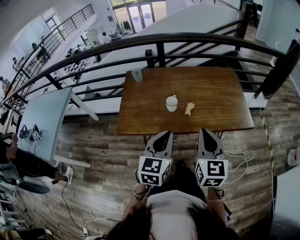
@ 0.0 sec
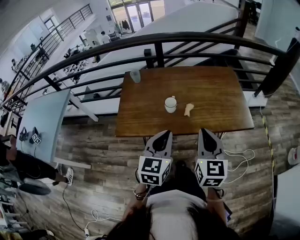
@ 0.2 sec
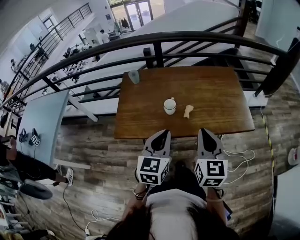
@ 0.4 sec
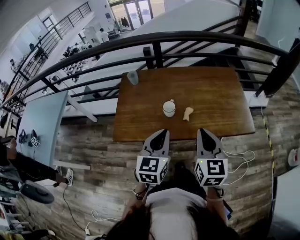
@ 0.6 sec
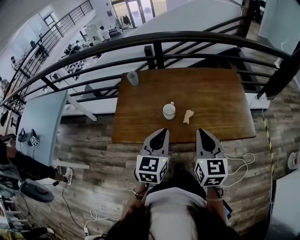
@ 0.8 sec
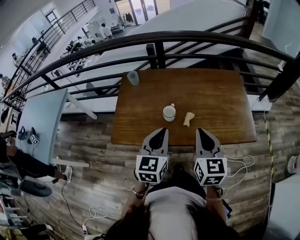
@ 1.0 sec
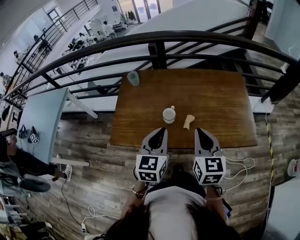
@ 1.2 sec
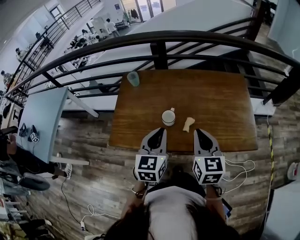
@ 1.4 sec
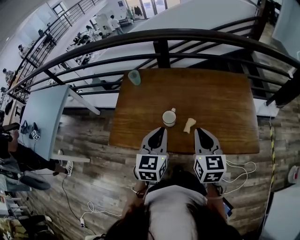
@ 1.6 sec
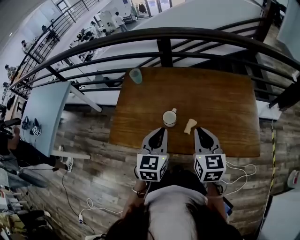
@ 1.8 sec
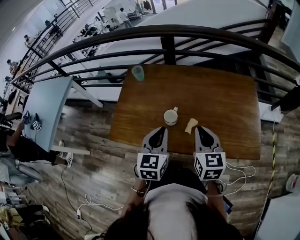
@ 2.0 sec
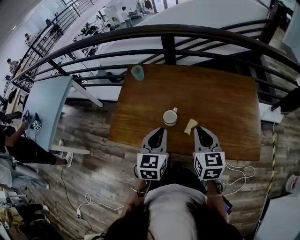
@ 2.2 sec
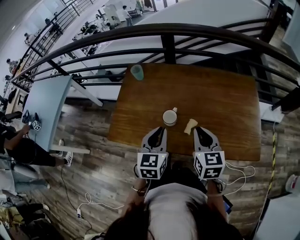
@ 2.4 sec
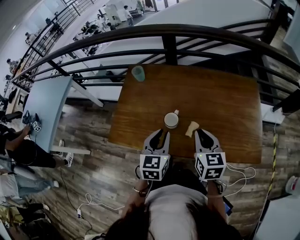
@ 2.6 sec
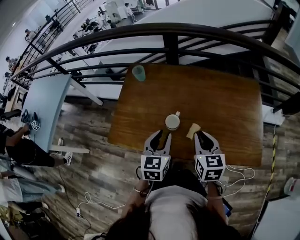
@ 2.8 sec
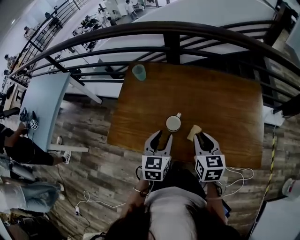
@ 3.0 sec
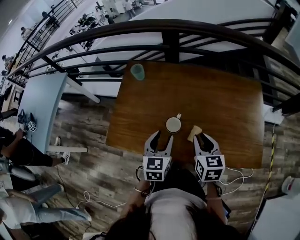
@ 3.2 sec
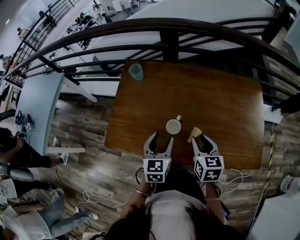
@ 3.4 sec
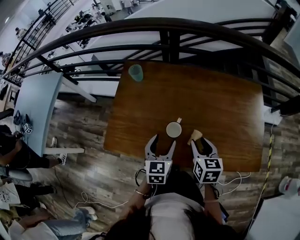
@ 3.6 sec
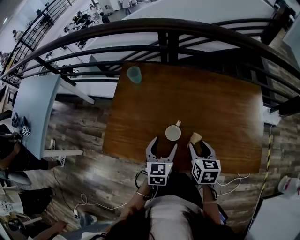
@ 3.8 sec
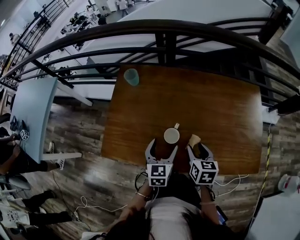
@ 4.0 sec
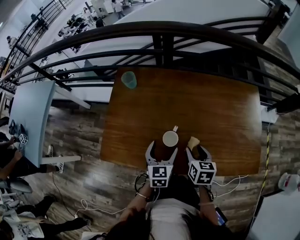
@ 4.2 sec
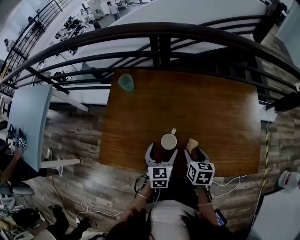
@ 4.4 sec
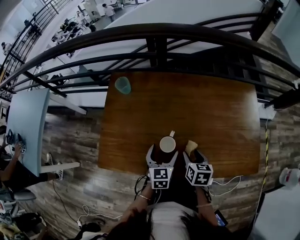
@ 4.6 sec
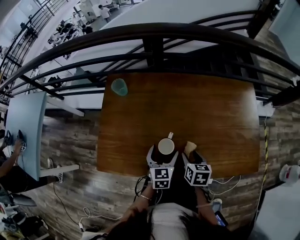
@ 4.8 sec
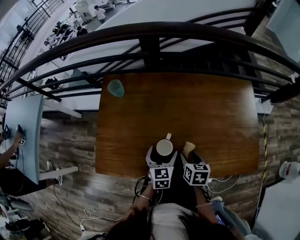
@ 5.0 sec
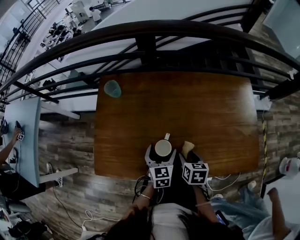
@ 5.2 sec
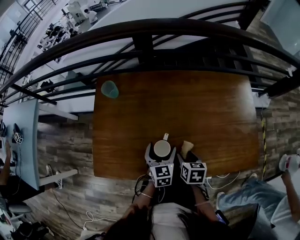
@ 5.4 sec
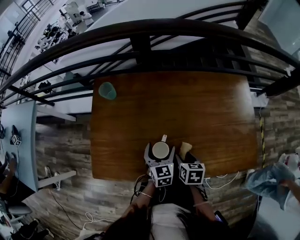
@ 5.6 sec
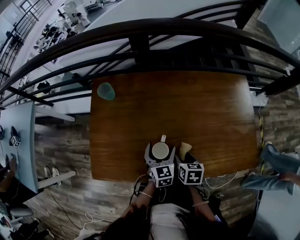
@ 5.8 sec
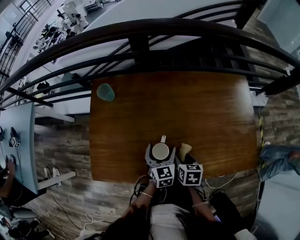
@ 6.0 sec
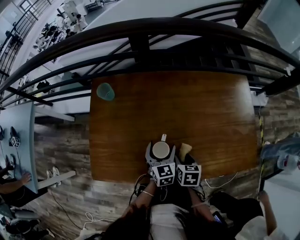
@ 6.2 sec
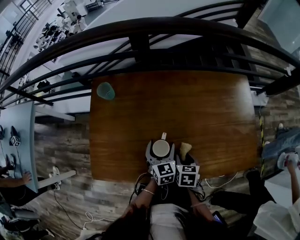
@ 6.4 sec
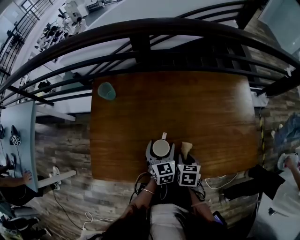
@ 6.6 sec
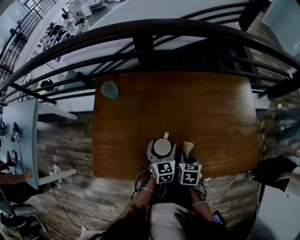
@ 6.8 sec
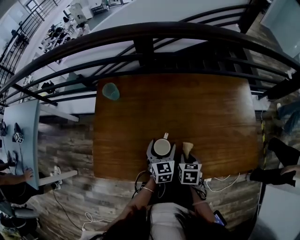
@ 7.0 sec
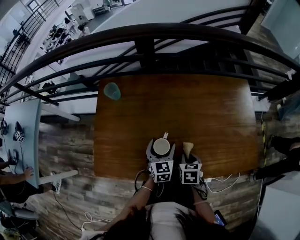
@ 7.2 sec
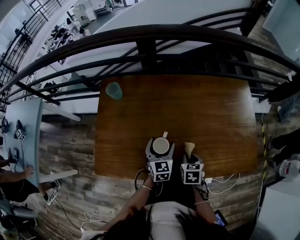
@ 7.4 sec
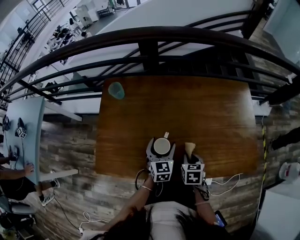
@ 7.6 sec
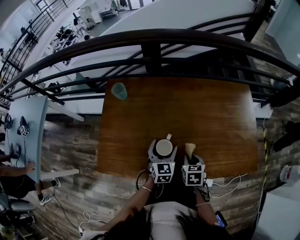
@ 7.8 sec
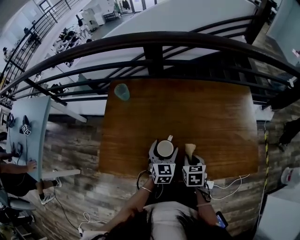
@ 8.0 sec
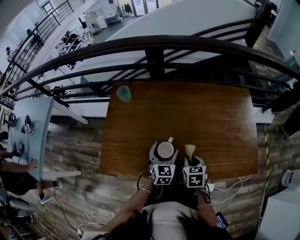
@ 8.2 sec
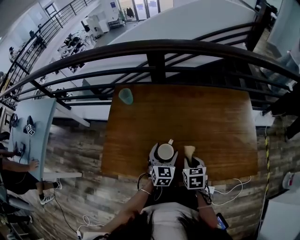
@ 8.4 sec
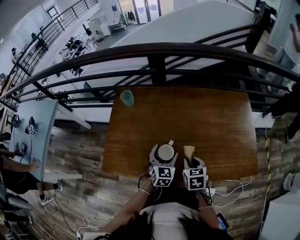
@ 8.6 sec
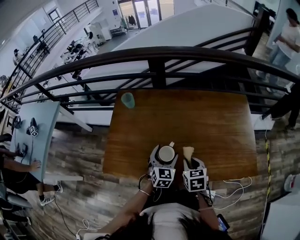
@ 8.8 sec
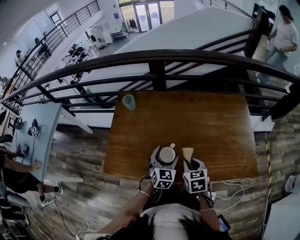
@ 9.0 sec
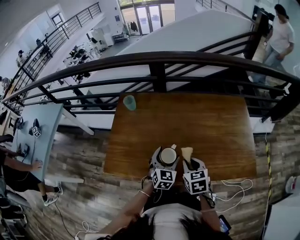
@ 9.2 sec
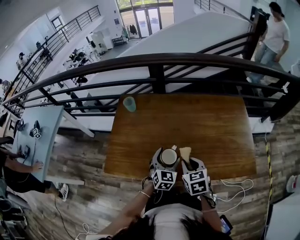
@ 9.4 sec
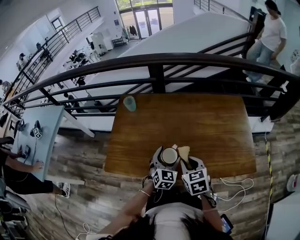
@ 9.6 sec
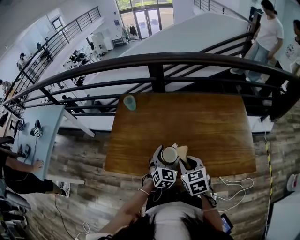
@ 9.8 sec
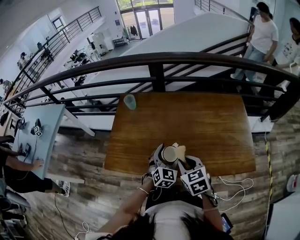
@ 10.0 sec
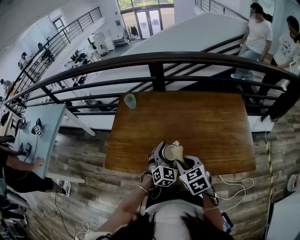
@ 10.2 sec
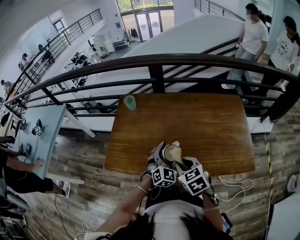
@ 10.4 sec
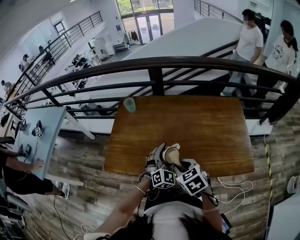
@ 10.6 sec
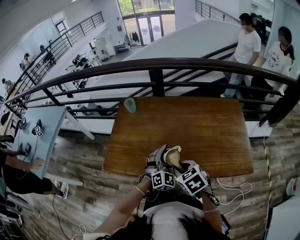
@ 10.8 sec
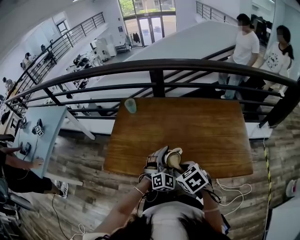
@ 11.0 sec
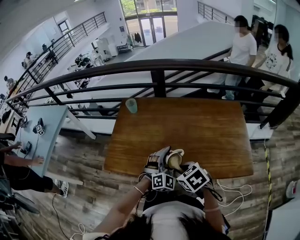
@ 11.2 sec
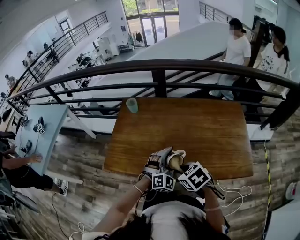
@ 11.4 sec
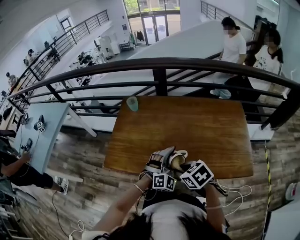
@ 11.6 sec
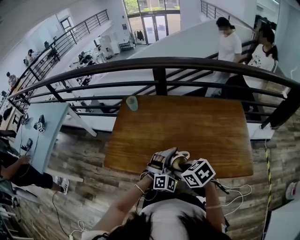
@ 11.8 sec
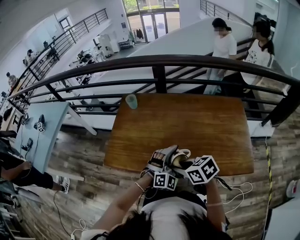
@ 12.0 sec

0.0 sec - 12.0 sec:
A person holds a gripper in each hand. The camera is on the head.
0.0 sec - 1.6 sec: The grippers both shift forward by some 20 cm.
1.6 sec - 3.0 sec: The grippers both shift downward and forward by roughly 10 cm.
3.0 sec - 4.4 sec: The left gripper travels downward and forward by about 10 cm, and opens, while the right gripper is displaced downward by approximately 10 cm, rotates approximately 20 degrees, and opens up.
4.4 sec - 6.0 sec: The right gripper moves downward, roughly 5 cm. The left gripper moves downward and forward, some 10 cm.
6.0 sec - 7.6 sec: The right gripper closes.
7.6 sec - 9.0 sec: The right gripper goes roughly 10 cm upward, while the left gripper heads backward, covering roughly 5 cm.
9.0 sec - 10.4 sec: The right gripper shifts roughly 10 cm upward and backward, and turns by about 20 degrees. The left gripper shifts roughly 5 cm upward, and rotates approximately 20 degrees.
10.4 sec - 12.0 sec: The left gripper goes some 5 cm backward, and rotates about 30 degrees, while the right gripper changes its angle by about 30 degrees.

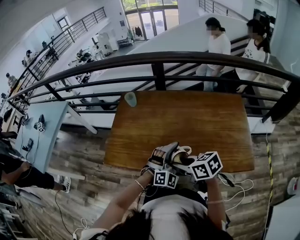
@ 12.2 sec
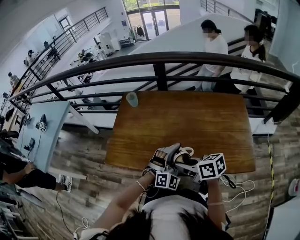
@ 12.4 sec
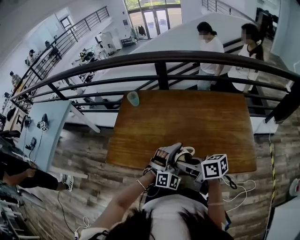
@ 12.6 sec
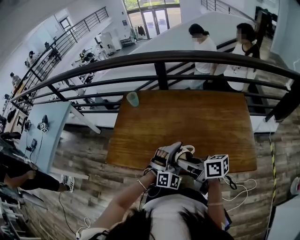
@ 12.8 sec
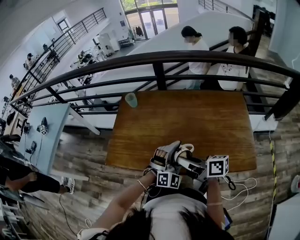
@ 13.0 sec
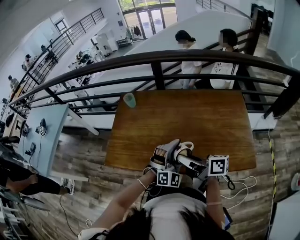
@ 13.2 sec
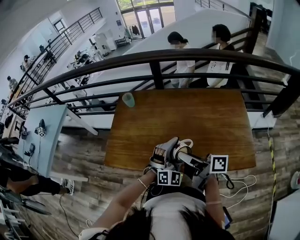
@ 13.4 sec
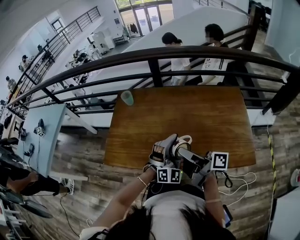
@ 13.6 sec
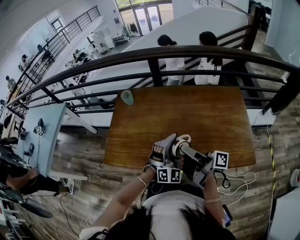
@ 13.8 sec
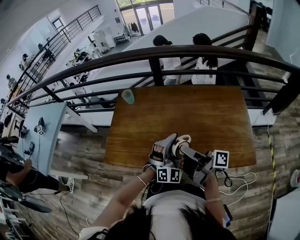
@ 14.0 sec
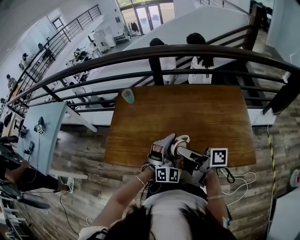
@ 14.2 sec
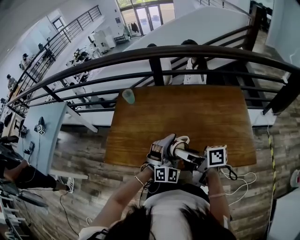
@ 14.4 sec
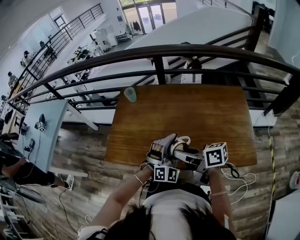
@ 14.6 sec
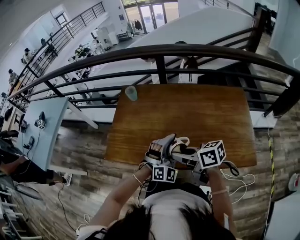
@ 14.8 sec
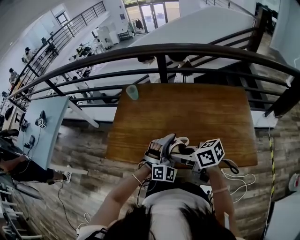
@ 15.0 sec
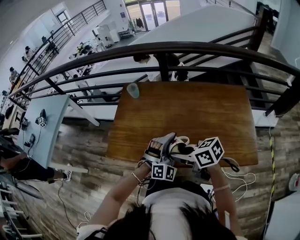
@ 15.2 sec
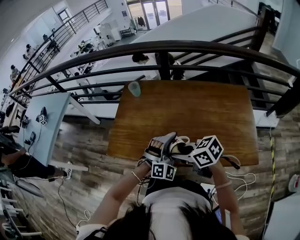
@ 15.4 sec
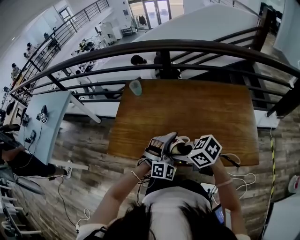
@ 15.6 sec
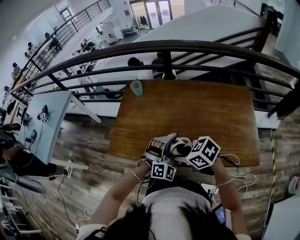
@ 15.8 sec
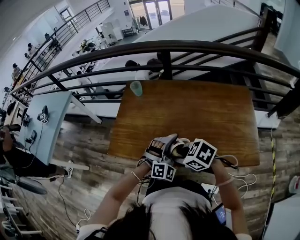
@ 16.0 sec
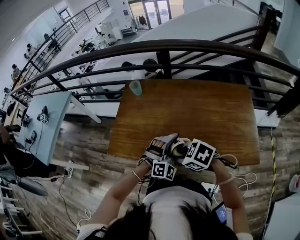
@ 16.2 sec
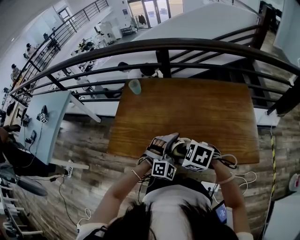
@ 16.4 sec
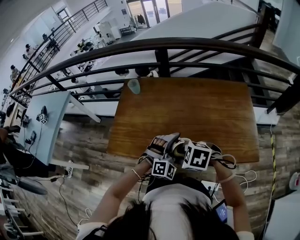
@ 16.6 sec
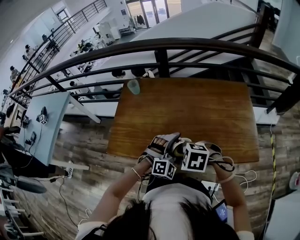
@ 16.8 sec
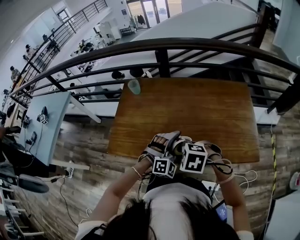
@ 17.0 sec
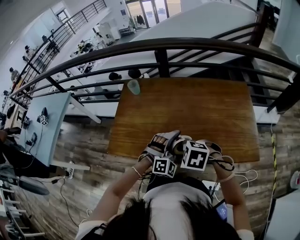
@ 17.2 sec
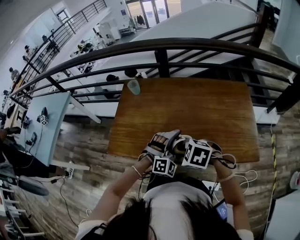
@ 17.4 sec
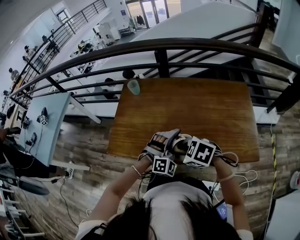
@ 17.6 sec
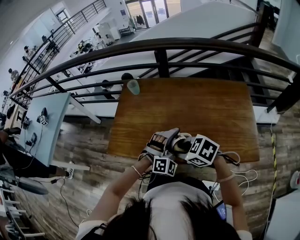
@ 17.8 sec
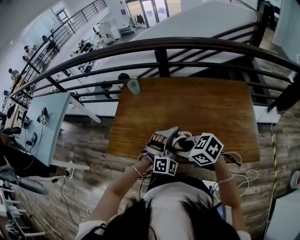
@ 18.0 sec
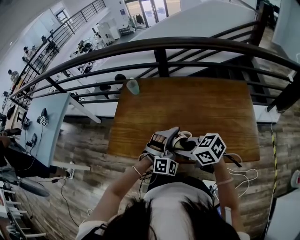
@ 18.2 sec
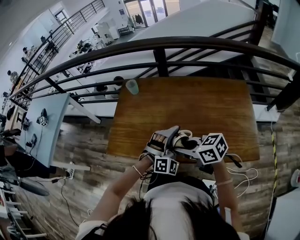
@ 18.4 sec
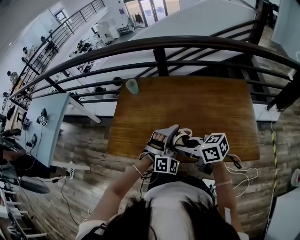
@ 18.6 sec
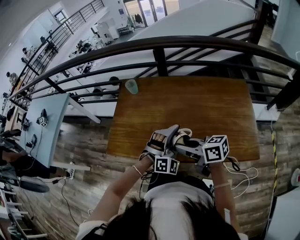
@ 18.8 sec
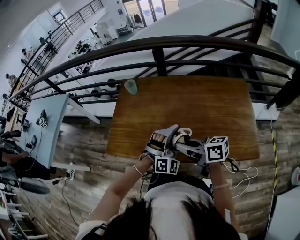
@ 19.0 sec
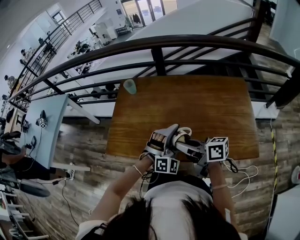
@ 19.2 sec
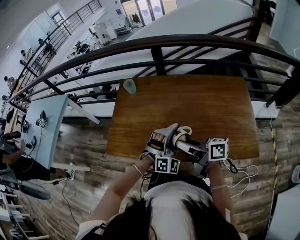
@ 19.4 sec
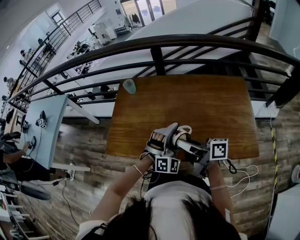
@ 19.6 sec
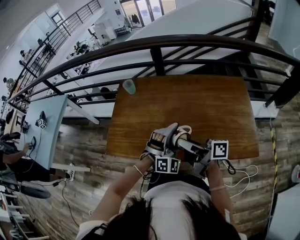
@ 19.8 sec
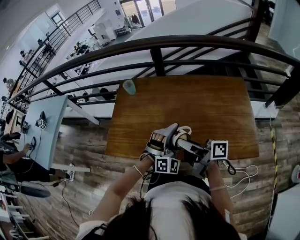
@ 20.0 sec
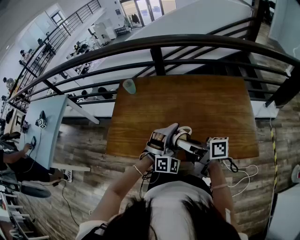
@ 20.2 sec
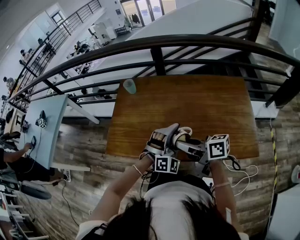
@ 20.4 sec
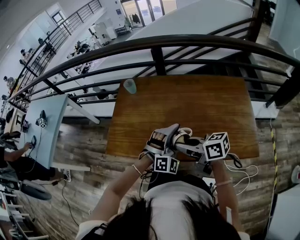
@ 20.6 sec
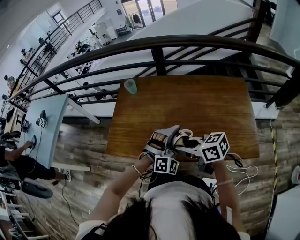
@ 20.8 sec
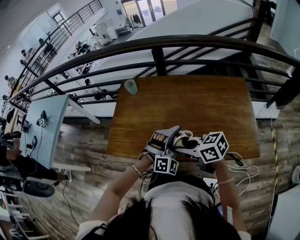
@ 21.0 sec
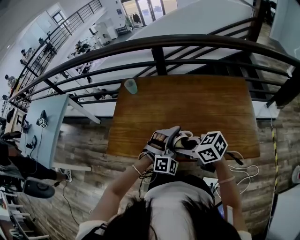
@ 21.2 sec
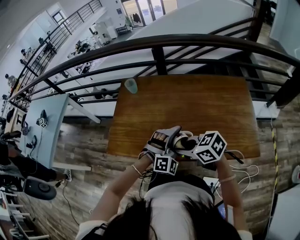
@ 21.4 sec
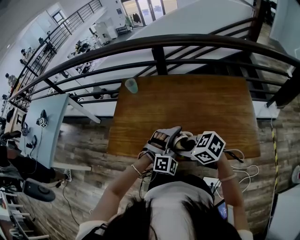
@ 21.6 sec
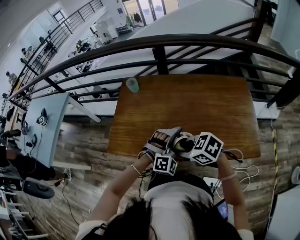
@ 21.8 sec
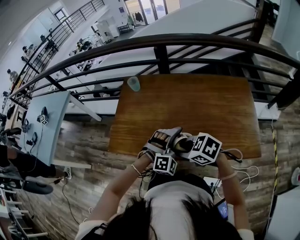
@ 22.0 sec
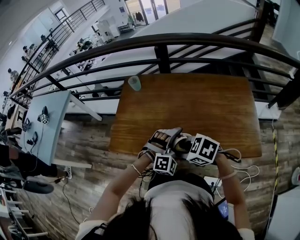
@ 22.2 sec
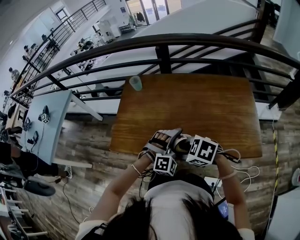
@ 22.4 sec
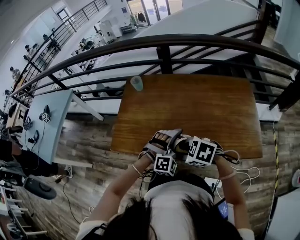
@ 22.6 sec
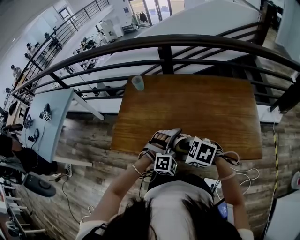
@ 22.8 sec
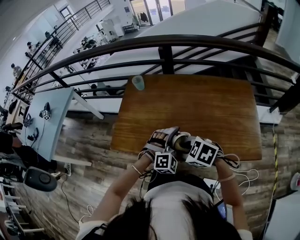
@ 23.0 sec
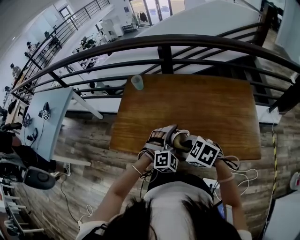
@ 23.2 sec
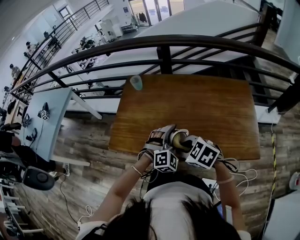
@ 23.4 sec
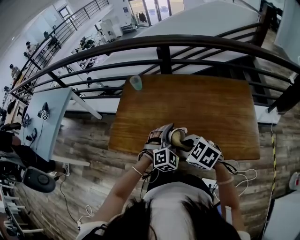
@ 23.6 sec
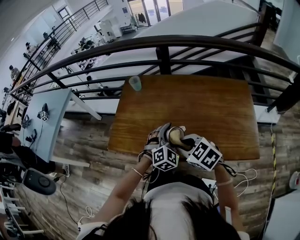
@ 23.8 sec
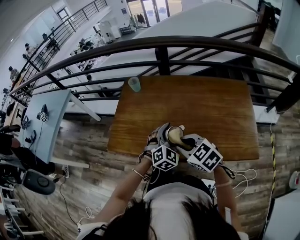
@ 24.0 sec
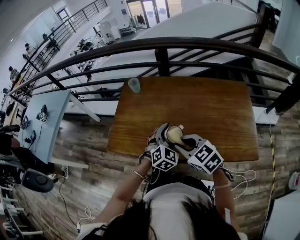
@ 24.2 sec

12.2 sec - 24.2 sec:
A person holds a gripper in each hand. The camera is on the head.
12.2 sec - 13.8 sec: The right gripper heads upward and to the right, covering some 10 cm, and tips its fingers upward by about 50 degrees.
13.8 sec - 15.2 sec: The right gripper shifts roughly 10 cm to the left, and tips its fingers downward by roughly 40 degrees.
15.2 sec - 16.6 sec: The right gripper moves some 5 cm, and angles its fingers downward, by roughly 40 degrees.
16.6 sec - 18.2 sec: The right gripper shifts by some 5 cm, and changes its angle by approximately 40 degrees.
18.2 sec - 19.8 sec: The right gripper moves some 5 cm, and points its fingers roughly 40 degrees further upward.
19.8 sec - 21.2 sec: The right gripper moves roughly 5 cm, and angles its fingers downward, by about 40 degrees.
21.2 sec - 22.6 sec: The right gripper shifts by approximately 5 cm, and swivels about 40 degrees.
22.6 sec - 24.2 sec: The right gripper goes roughly 5 cm upward, and changes its angle by some 30 degrees, while the left gripper shifts by approximately 5 cm, and twists roughly 40 degrees counterclockwise, seen from behind.
